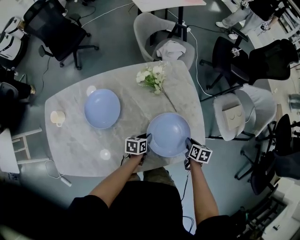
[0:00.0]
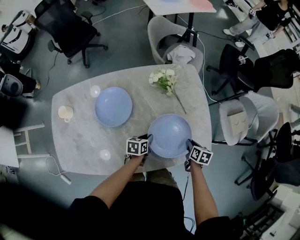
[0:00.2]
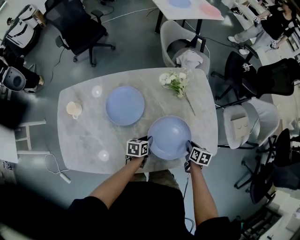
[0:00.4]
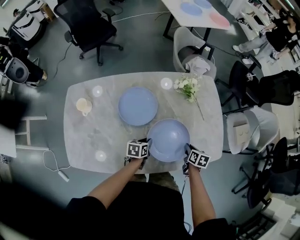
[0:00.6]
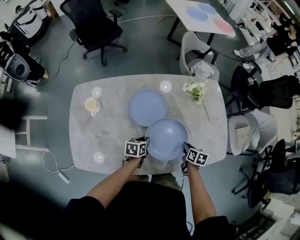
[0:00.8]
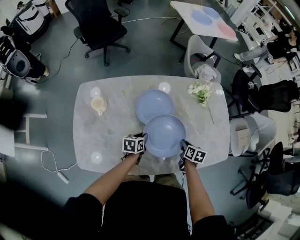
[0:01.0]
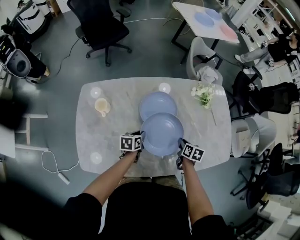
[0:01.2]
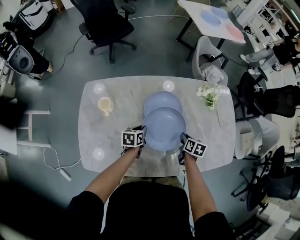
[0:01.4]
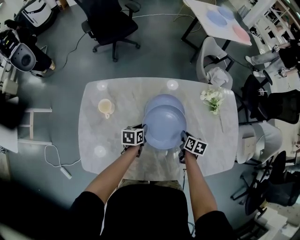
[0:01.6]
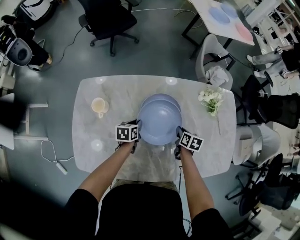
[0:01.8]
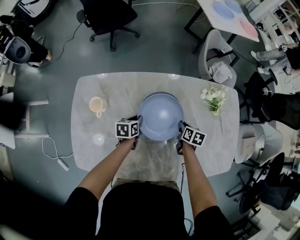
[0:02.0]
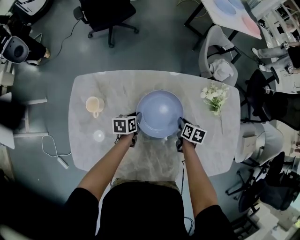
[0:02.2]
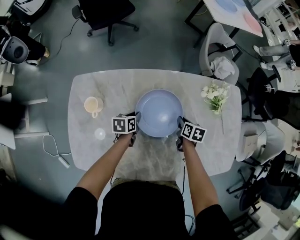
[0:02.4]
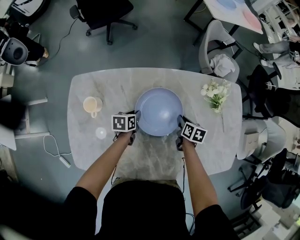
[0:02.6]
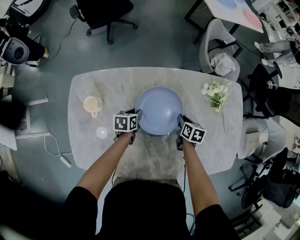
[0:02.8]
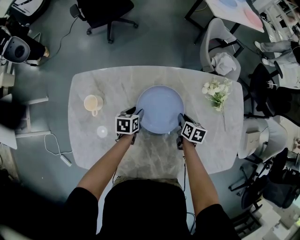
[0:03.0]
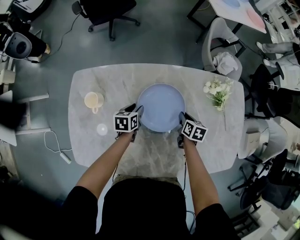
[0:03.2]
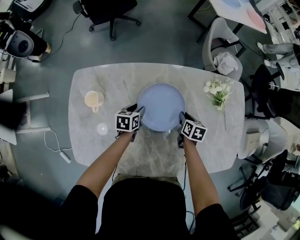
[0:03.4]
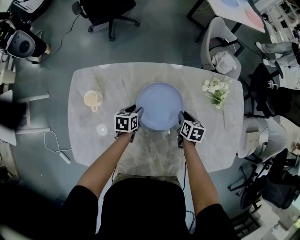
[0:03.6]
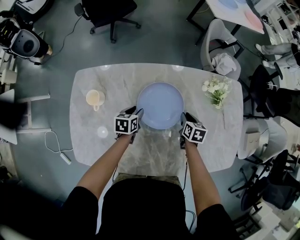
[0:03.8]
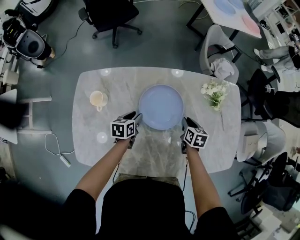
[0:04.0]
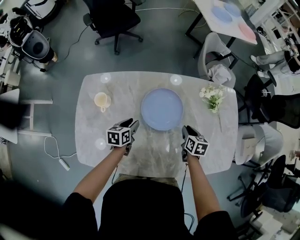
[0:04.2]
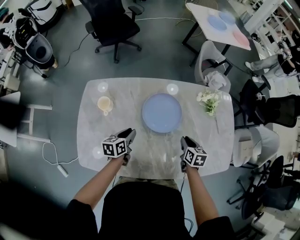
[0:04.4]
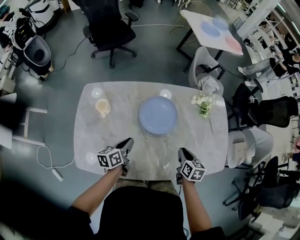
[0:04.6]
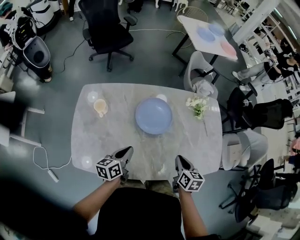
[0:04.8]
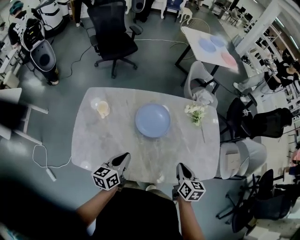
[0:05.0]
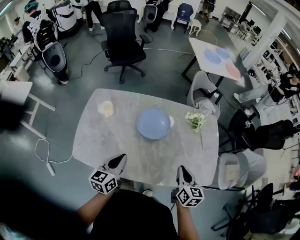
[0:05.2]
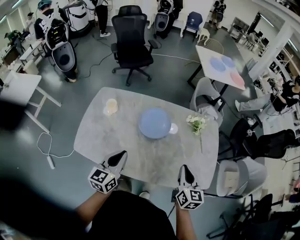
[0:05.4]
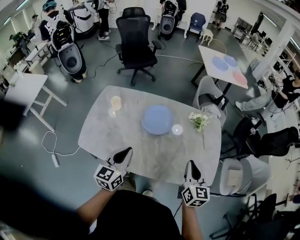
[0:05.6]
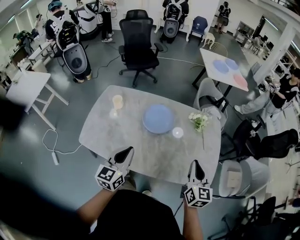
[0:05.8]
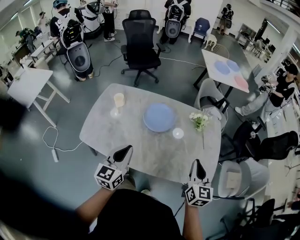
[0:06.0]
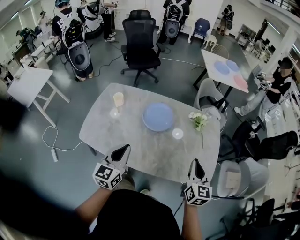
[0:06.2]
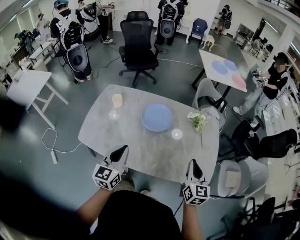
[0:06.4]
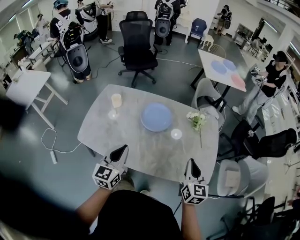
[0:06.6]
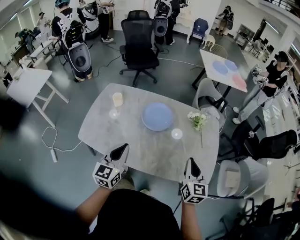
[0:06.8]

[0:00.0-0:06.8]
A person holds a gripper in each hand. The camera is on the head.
0:00.0 to 0:01.4: Both grippers are carried to the left, some 40 cm.
0:01.4 to 0:02.8: Both grippers travel together forward, about 10 cm.
0:02.8 to 0:04.0: The left gripper changes place by some 5 cm. The right gripper shifts by roughly 5 cm.
0:04.0 to 0:05.4: The grippers both shift upward and backward by approximately 50 cm. The right gripper angles its fingers upward, by about 30 degrees, while the left gripper tilts its fingers about 30 degrees upward, and closes.
0:05.4 to 0:06.8: The right gripper shifts about 10 cm to the right and backward. Meanwhile the left gripper goes some 5 cm backward.

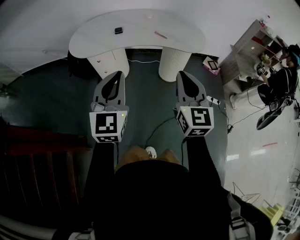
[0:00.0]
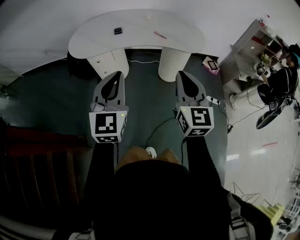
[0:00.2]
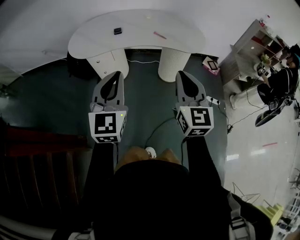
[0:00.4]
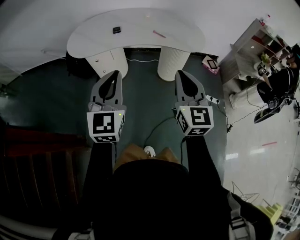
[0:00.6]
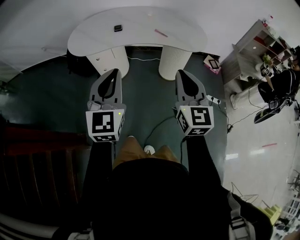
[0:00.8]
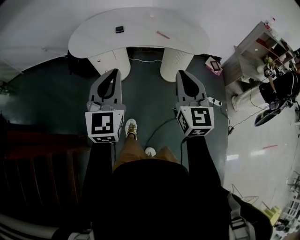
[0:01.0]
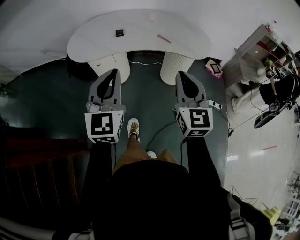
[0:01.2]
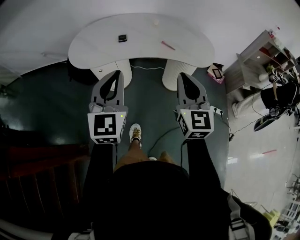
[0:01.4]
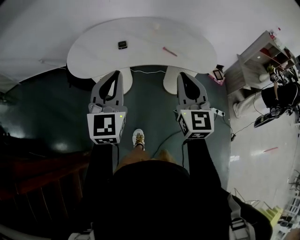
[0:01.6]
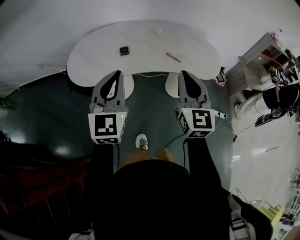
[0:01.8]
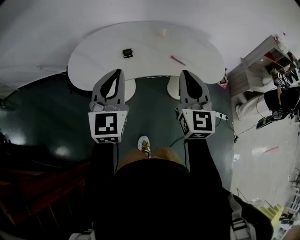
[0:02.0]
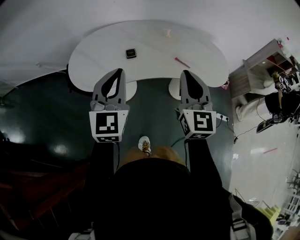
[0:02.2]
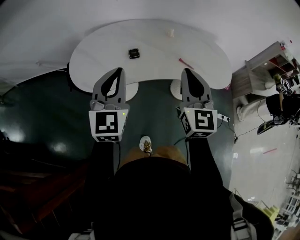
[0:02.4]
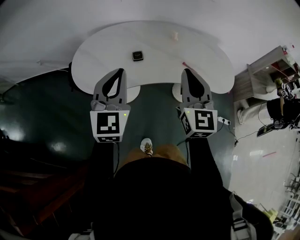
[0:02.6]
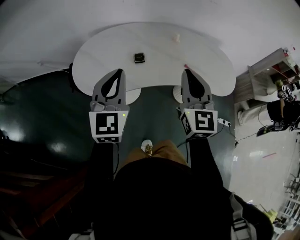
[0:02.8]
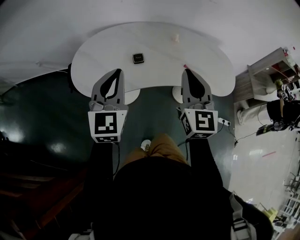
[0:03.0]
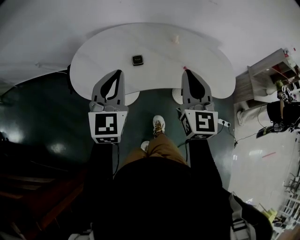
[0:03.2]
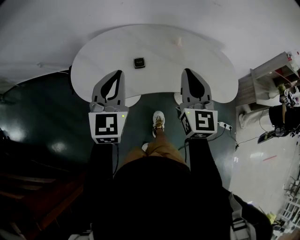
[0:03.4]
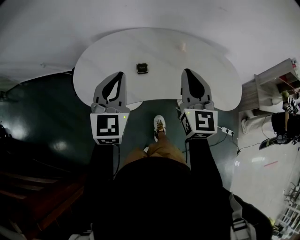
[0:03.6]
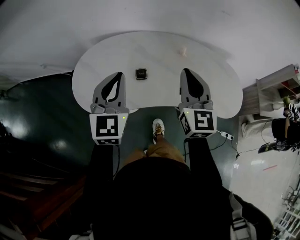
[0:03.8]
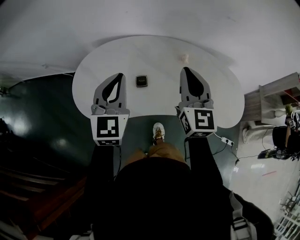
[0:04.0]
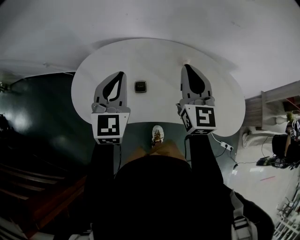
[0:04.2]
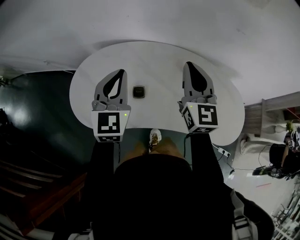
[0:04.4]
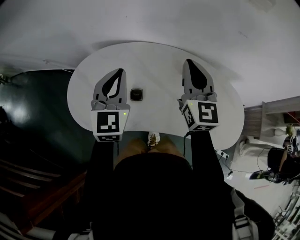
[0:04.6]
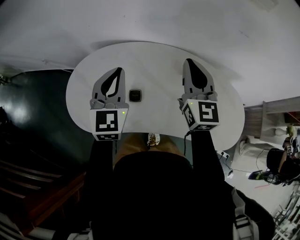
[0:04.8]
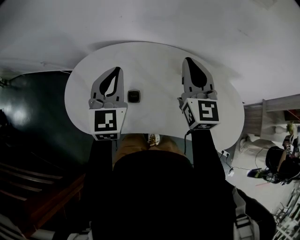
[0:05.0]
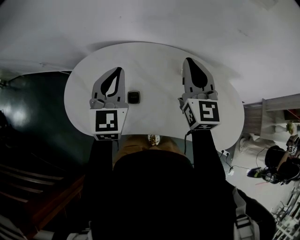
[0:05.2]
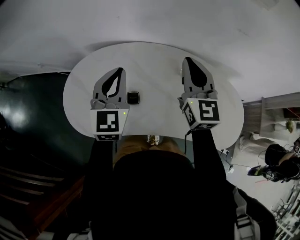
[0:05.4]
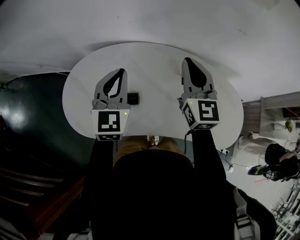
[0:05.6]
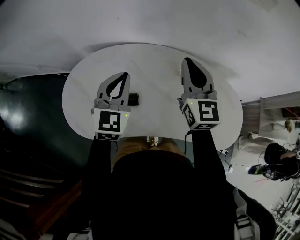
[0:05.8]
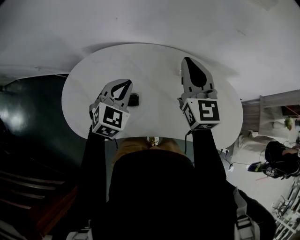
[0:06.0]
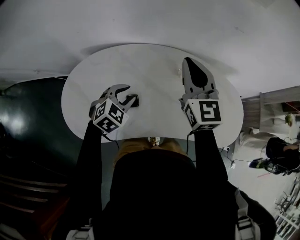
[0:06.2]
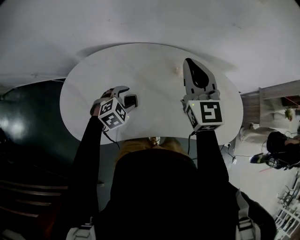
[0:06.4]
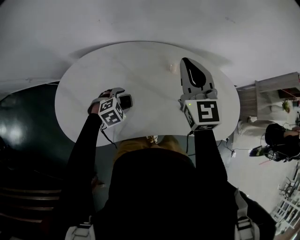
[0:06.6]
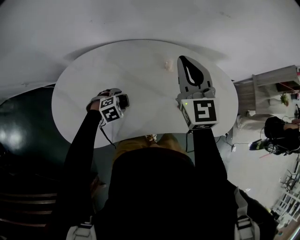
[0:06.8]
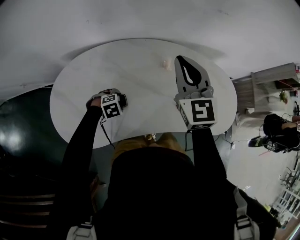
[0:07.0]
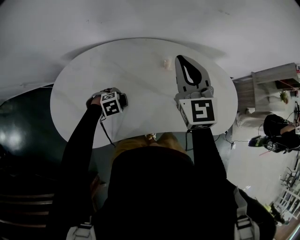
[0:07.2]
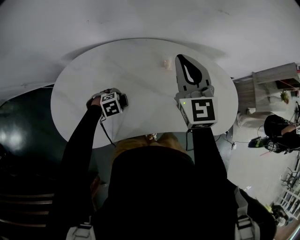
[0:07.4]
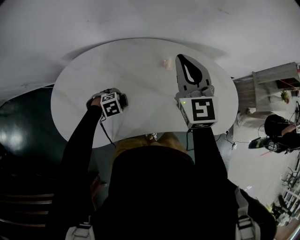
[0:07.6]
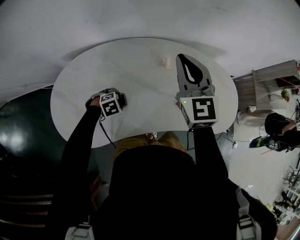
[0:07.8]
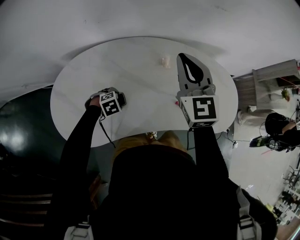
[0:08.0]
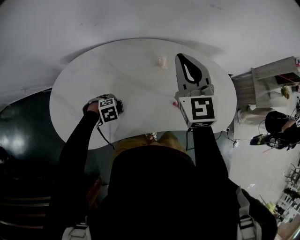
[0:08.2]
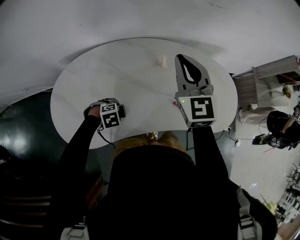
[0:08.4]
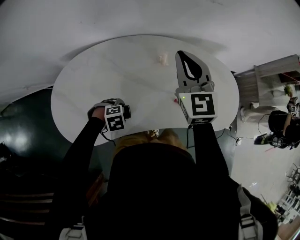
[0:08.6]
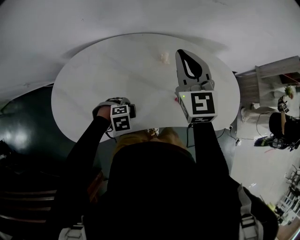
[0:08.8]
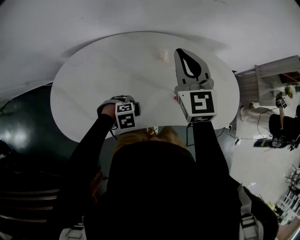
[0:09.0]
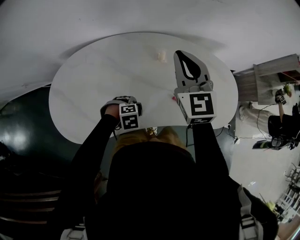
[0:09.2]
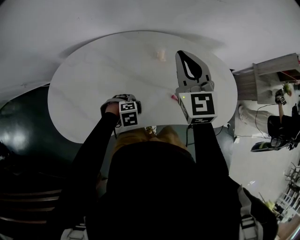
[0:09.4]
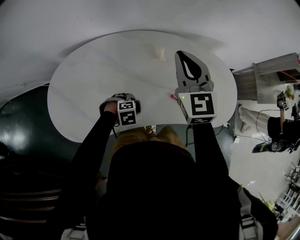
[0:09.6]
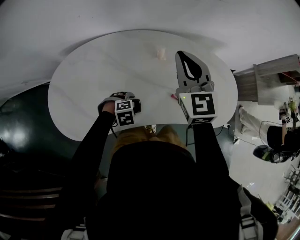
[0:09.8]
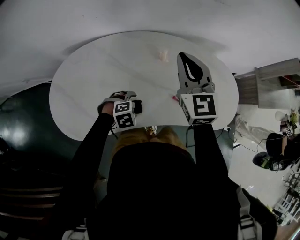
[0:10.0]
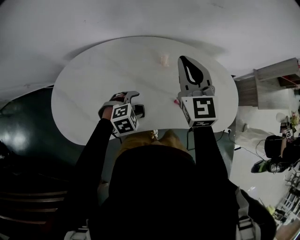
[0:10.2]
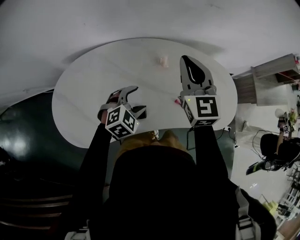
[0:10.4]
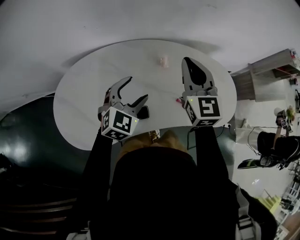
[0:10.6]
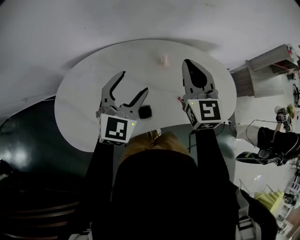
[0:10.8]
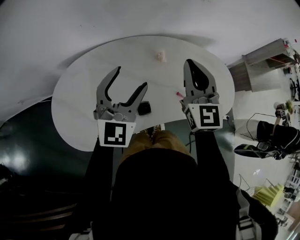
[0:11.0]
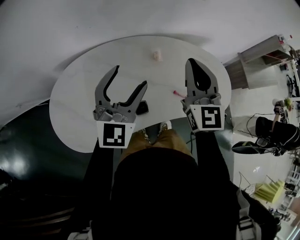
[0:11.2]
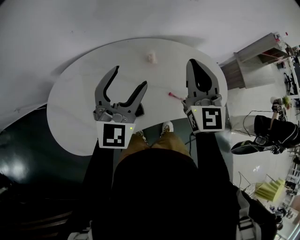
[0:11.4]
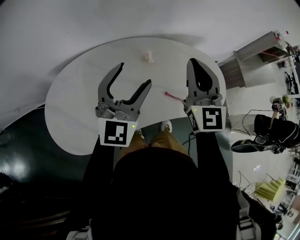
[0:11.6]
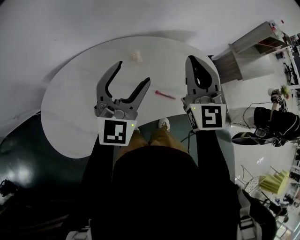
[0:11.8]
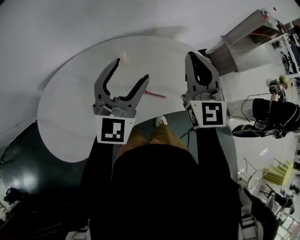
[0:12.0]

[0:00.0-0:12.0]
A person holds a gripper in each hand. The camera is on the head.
0:00.0 to 0:01.6: The grippers both shift forward by some 15 cm.
0:01.6 to 0:03.0: Both grippers travel together forward and to the left, approximately 20 cm.
0:03.0 to 0:04.4: Both grippers move forward, roughly 25 cm.
0:04.4 to 0:06.0: The left gripper heads downward and forward, covering some 10 cm, and swivels some 30 degrees. The right gripper heads forward, covering about 5 cm.
0:06.0 to 0:07.6: The left gripper moves downward, roughly 25 cm, tilts its fingers roughly 50 degrees downward, and opens up.
0:07.6 to 0:09.0: The left gripper changes place by about 10 cm.
0:09.0 to 0:10.4: The left gripper heads upward, covering some 10 cm, and tilts its fingers roughly 30 degrees upward.
0:10.4 to 0:12.0: The right gripper is displaced to the right by roughly 15 cm, while the left gripper goes approximately 25 cm upward and to the right, and angles its fingers upward, by about 50 degrees.

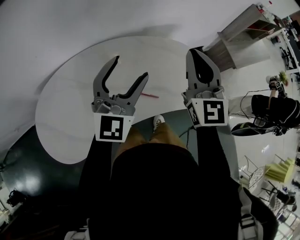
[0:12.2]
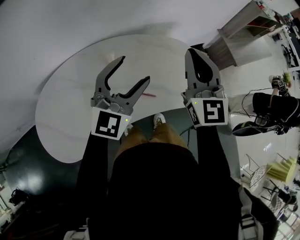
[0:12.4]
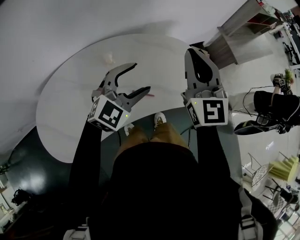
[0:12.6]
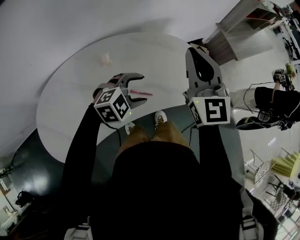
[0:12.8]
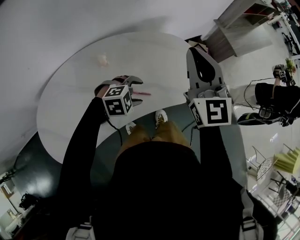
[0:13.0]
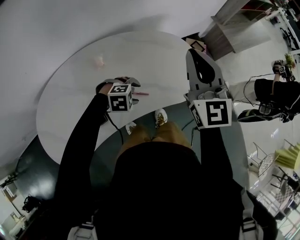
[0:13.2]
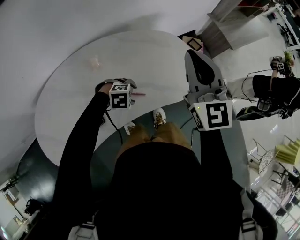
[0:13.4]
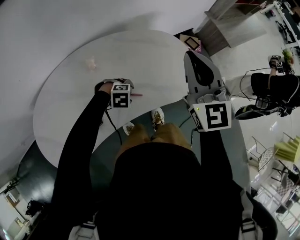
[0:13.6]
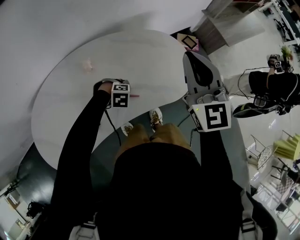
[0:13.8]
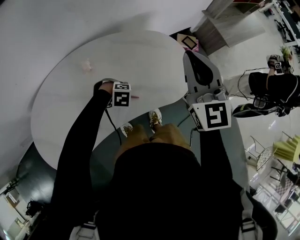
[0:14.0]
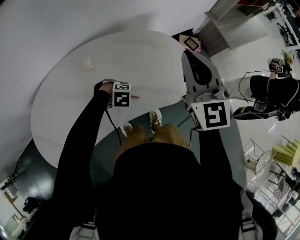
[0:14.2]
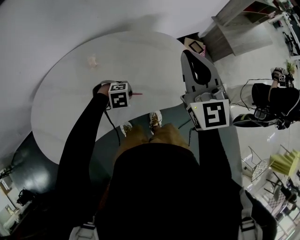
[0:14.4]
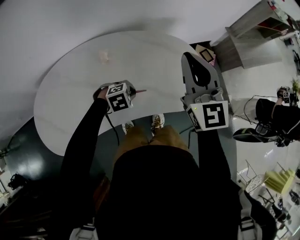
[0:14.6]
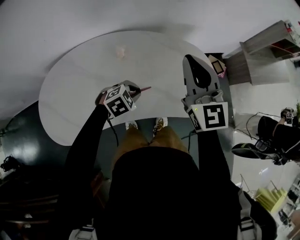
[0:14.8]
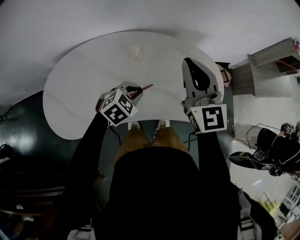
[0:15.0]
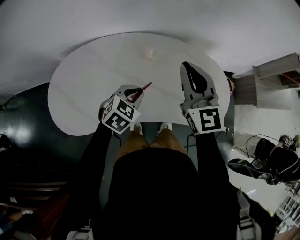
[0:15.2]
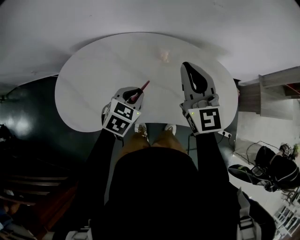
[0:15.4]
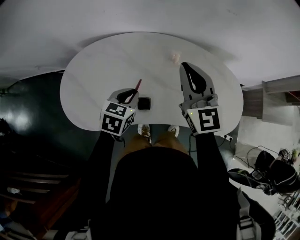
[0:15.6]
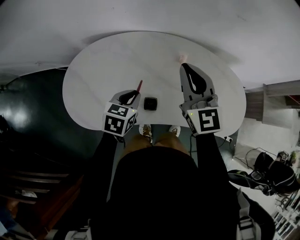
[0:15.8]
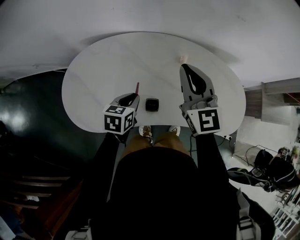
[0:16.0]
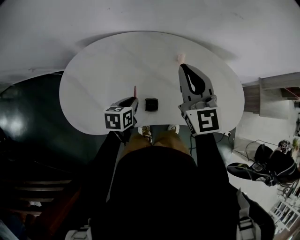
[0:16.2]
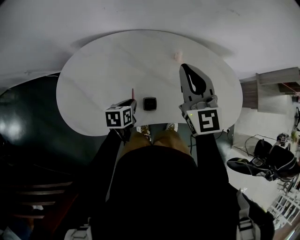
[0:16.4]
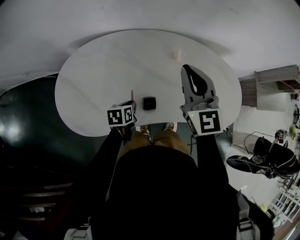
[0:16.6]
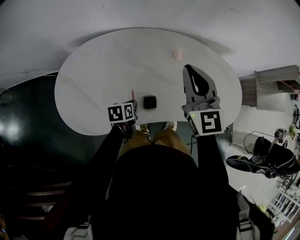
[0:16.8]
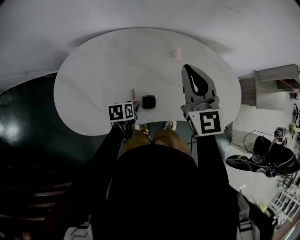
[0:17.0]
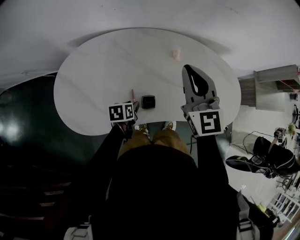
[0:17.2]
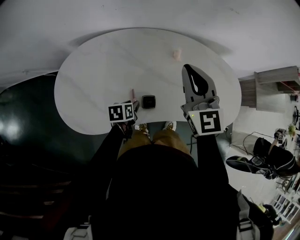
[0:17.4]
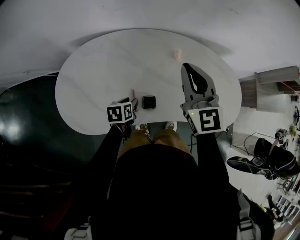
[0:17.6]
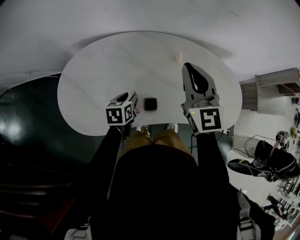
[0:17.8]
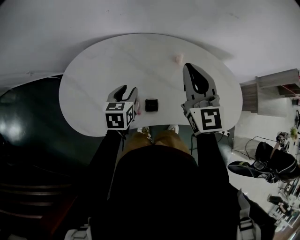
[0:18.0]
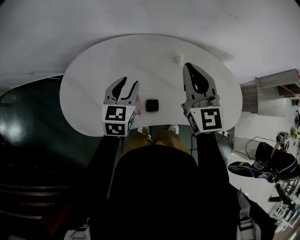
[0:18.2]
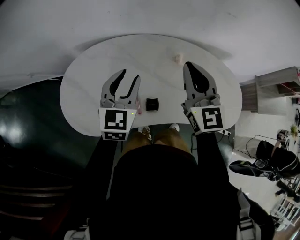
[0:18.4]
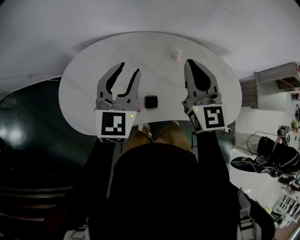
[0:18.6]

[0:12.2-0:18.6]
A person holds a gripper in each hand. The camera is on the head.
0:12.2 to 0:13.8: The right gripper moves about 10 cm, while the left gripper heads downward, covering some 35 cm, points its fingers roughly 80 degrees further downward, and closes its fingers.
0:13.8 to 0:15.4: The right gripper shifts by roughly 30 cm, and rotates approximately 30 degrees. The left gripper heads upward, covering approximately 20 cm, rolls counterclockwise, seen from behind, by roughly 80 degrees, and closes up.
0:15.4 to 0:17.0: The left gripper heads downward and to the left, covering approximately 20 cm, and rotates around the line of its fingers by about 50 degrees, counterclockwise from behind. Meanwhile the right gripper heads to the left, covering approximately 10 cm.
0:17.0 to 0:18.6: The left gripper shifts roughly 30 cm upward, and tilts its fingers about 50 degrees upward.
